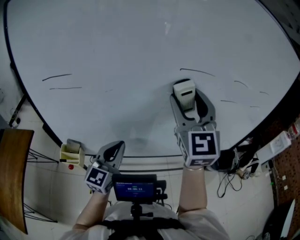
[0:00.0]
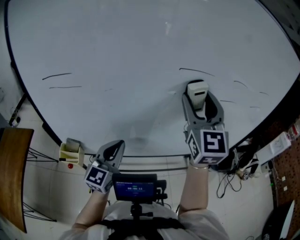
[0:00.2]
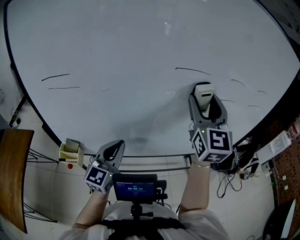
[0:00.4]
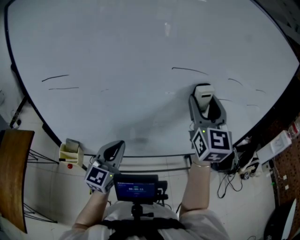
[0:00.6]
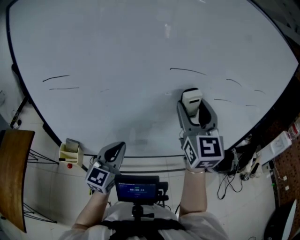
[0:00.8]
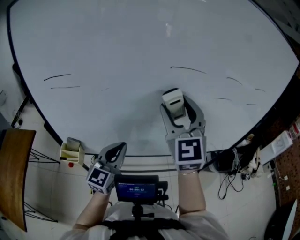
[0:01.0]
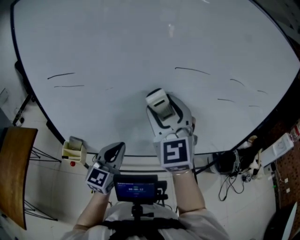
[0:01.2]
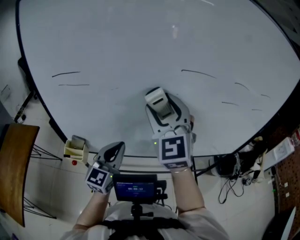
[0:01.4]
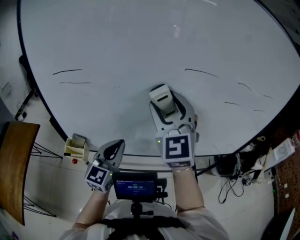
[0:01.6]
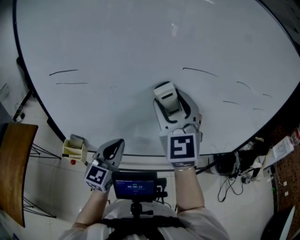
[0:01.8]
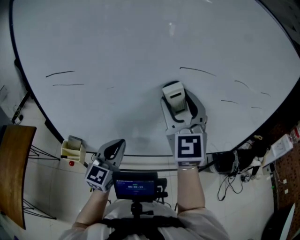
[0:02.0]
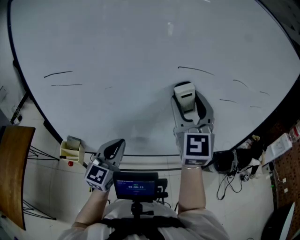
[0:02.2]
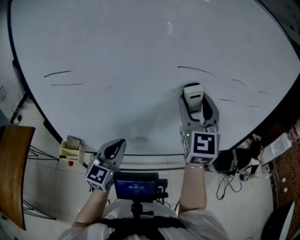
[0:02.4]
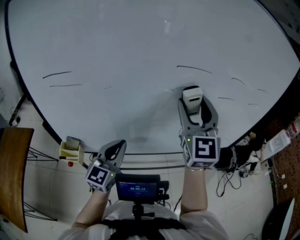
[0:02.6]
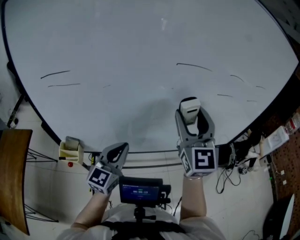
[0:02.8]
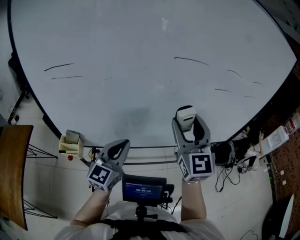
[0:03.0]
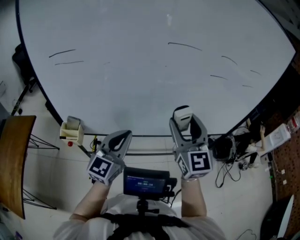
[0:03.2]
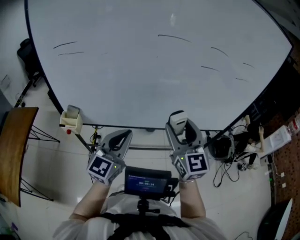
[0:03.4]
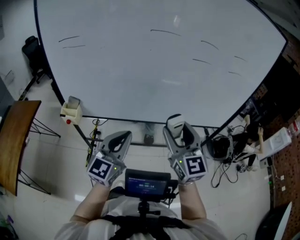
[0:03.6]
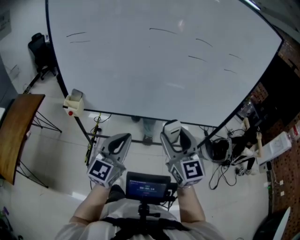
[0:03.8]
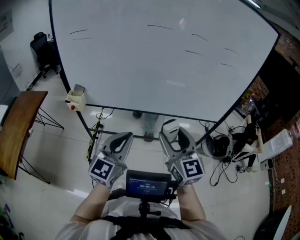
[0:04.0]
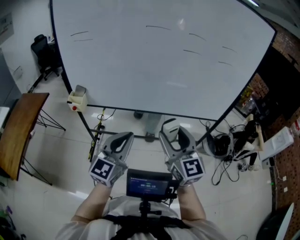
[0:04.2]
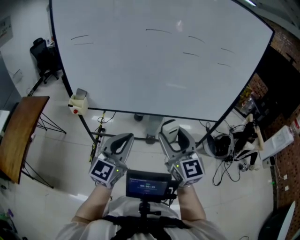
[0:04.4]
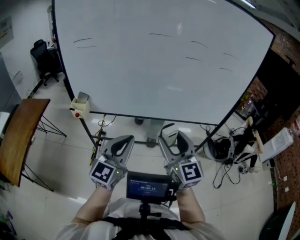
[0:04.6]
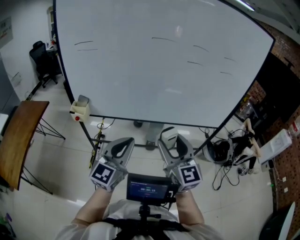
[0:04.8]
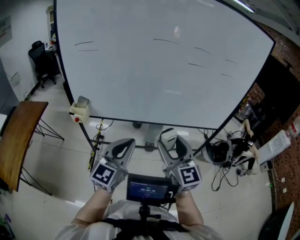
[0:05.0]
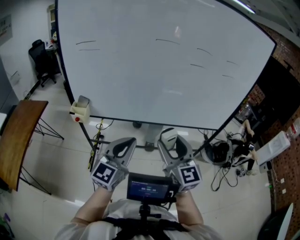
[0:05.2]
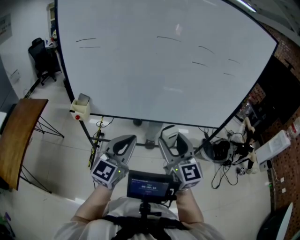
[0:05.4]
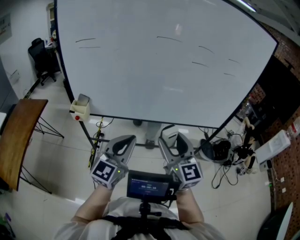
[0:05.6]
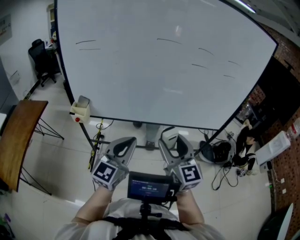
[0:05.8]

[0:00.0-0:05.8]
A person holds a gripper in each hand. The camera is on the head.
0:00.0 to 0:01.4: The right gripper heads to the left, covering some 5 cm.
0:01.4 to 0:02.8: The right gripper goes some 10 cm to the right.
0:02.8 to 0:04.4: The left gripper shifts some 30 cm backward and to the right; the right gripper is displaced backward and downward by approximately 30 cm, and rotates approximately 30 degrees.
0:04.4 to 0:05.8: There are only small adjustments of the grippers.

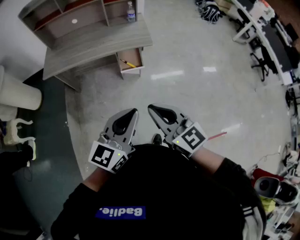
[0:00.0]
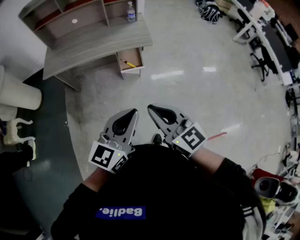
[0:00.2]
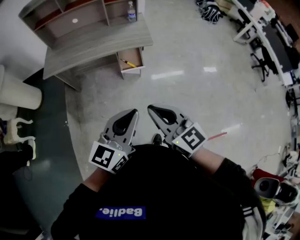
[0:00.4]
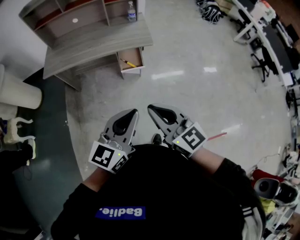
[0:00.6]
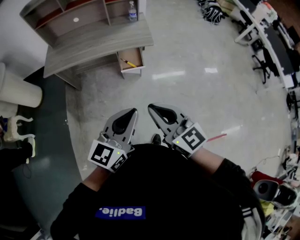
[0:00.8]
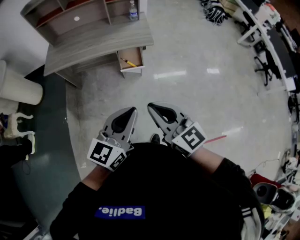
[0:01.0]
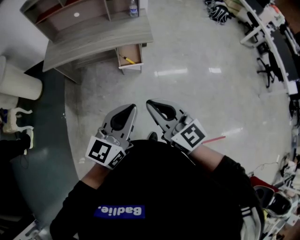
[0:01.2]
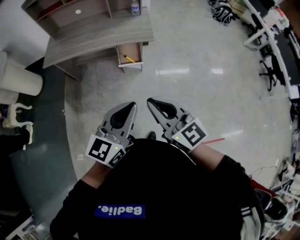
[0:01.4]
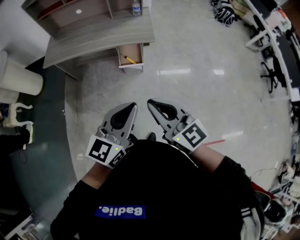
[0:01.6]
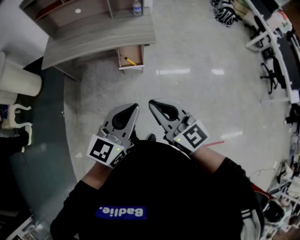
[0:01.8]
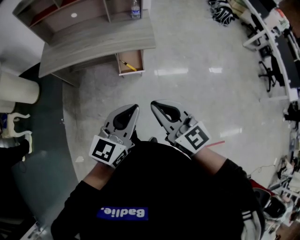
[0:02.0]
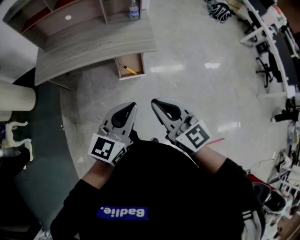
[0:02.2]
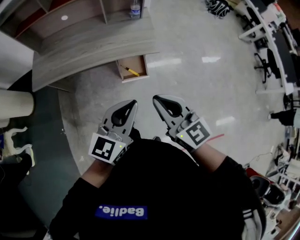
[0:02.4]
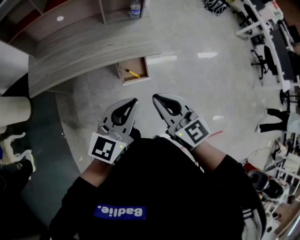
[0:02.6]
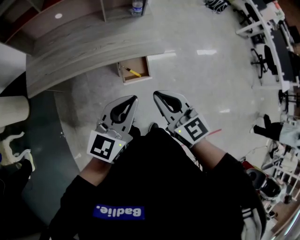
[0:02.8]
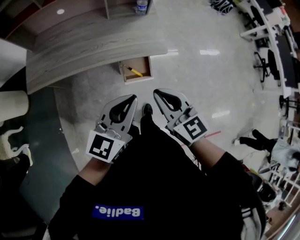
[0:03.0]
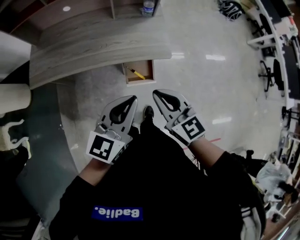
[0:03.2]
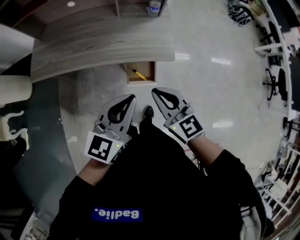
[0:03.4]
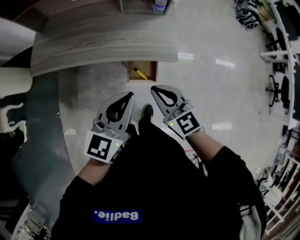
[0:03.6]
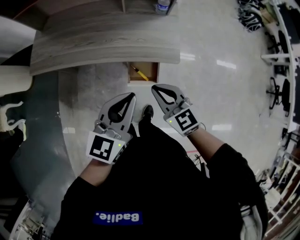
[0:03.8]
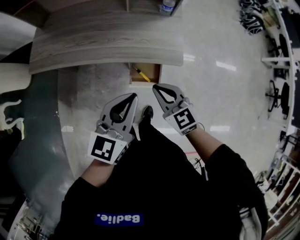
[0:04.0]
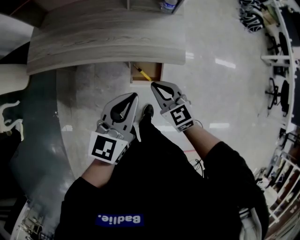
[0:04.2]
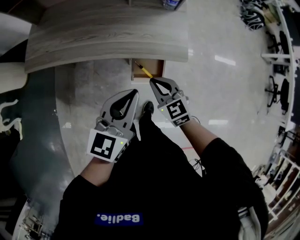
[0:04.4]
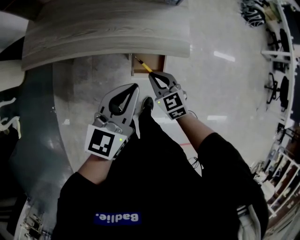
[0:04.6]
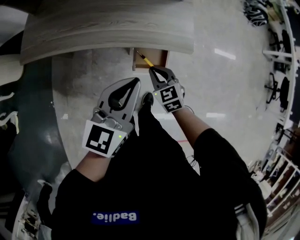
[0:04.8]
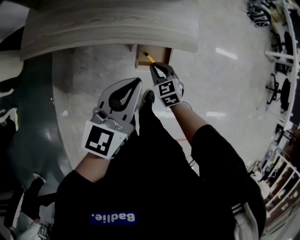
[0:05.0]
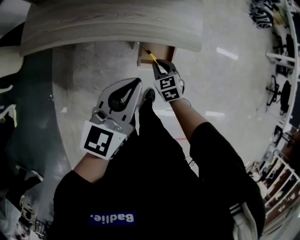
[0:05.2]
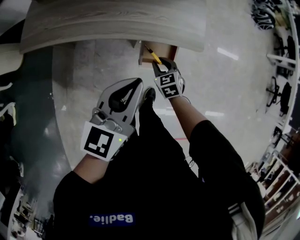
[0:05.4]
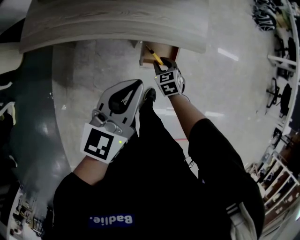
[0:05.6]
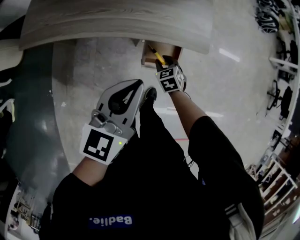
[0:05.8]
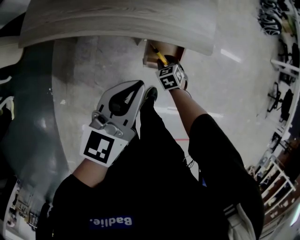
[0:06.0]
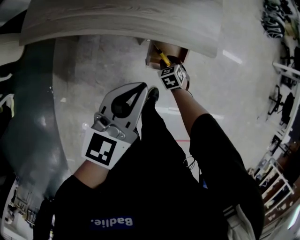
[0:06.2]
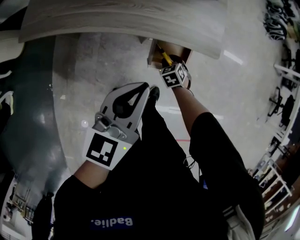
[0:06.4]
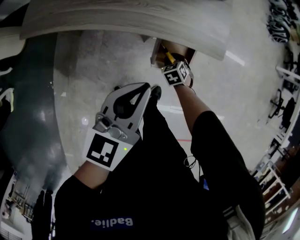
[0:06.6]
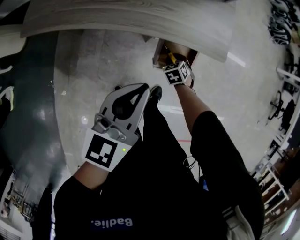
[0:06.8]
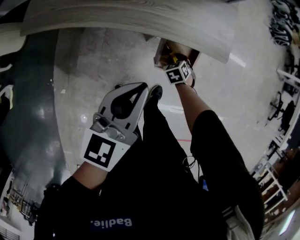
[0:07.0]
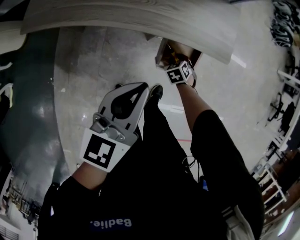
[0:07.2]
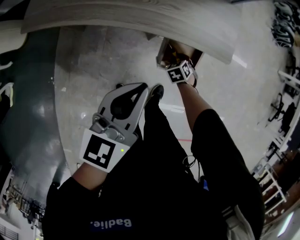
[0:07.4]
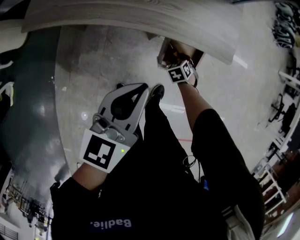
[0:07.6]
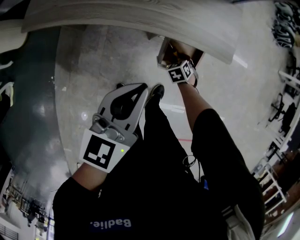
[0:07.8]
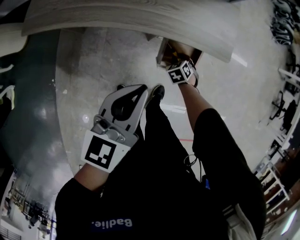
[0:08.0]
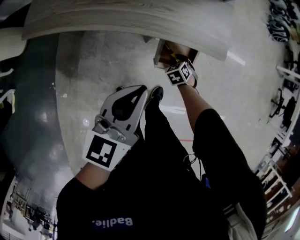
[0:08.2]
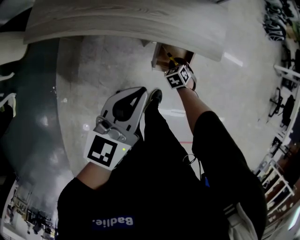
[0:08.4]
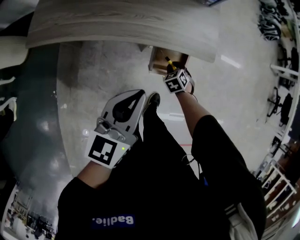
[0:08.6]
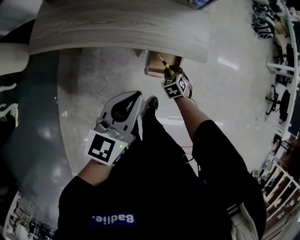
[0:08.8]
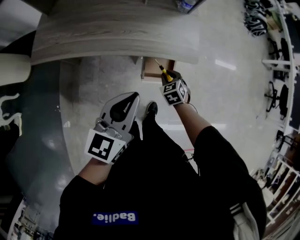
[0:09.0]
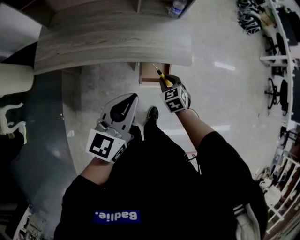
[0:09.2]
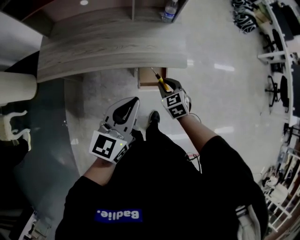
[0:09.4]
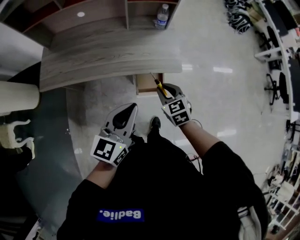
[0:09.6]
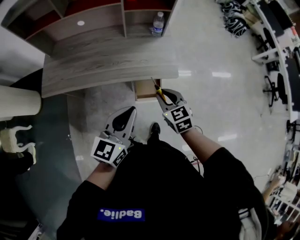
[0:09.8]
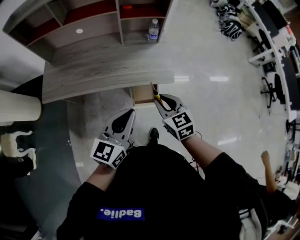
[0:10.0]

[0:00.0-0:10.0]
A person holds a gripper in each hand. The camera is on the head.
0:00.0 to 0:01.4: Both grippers travel together to the right, roughly 5 cm.
0:01.4 to 0:02.8: The left gripper shifts roughly 30 cm forward and to the left, while the right gripper is displaced forward by roughly 25 cm.
0:02.8 to 0:04.2: The right gripper goes some 20 cm downward and forward, and turns by some 20 degrees, while the left gripper moves forward and downward, about 10 cm.
0:04.2 to 0:05.8: The right gripper shifts about 25 cm downward, turns by roughly 30 degrees, and opens up. Meanwhile the left gripper moves to the left, some 5 cm.
0:05.8 to 0:07.2: The left gripper changes place by about 5 cm, while the right gripper goes about 10 cm downward.
0:07.2 to 0:08.6: The right gripper is displaced upward by approximately 5 cm.
0:08.6 to 0:10.0: The right gripper goes approximately 35 cm upward, and points its fingers some 30 degrees further upward. Meanwhile the left gripper heads upward and to the right, covering roughly 15 cm.

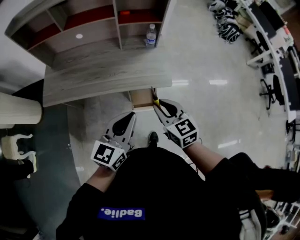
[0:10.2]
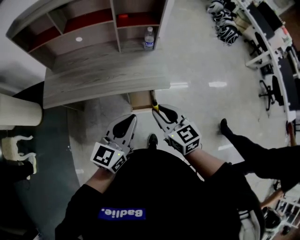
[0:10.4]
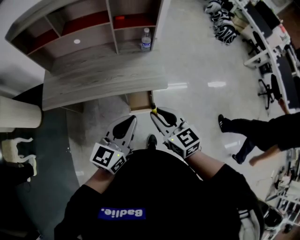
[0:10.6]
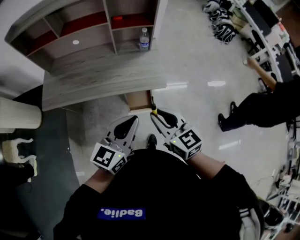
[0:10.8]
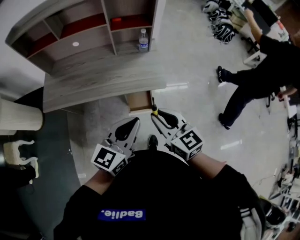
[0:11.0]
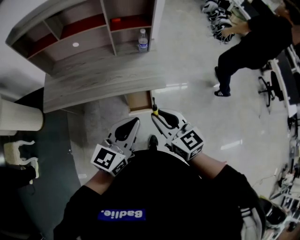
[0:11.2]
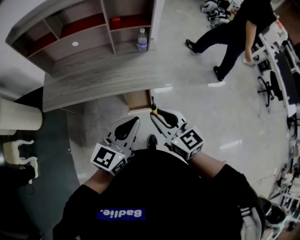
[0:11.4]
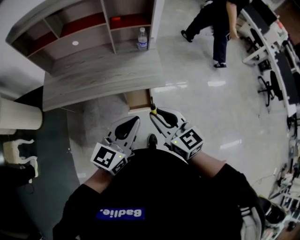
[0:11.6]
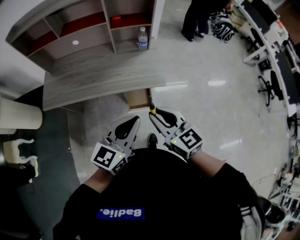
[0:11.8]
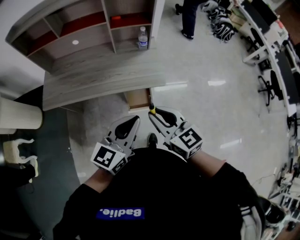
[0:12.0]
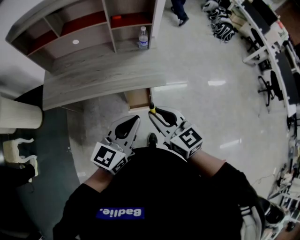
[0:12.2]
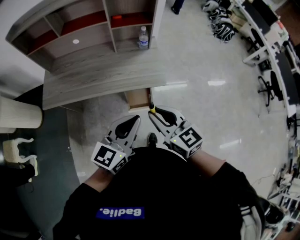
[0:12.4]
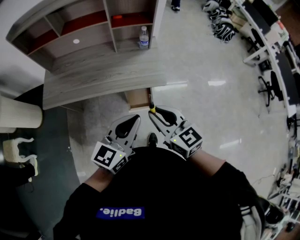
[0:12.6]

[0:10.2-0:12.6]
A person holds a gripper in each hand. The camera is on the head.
0:10.2 to 0:11.4: The left gripper shifts by approximately 5 cm. The right gripper goes about 10 cm upward and backward.
0:11.4 to 0:12.6: Both grippers stay put.

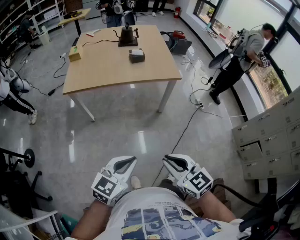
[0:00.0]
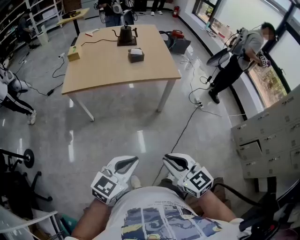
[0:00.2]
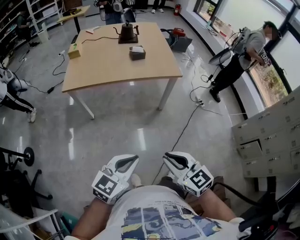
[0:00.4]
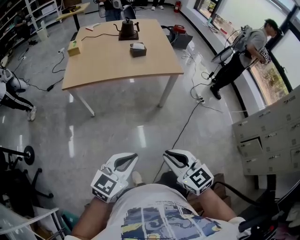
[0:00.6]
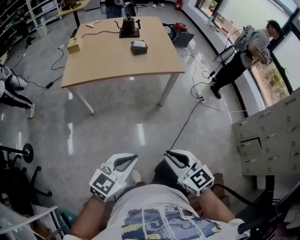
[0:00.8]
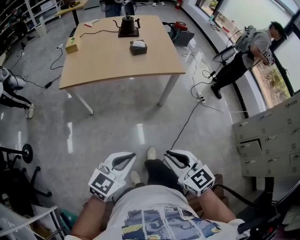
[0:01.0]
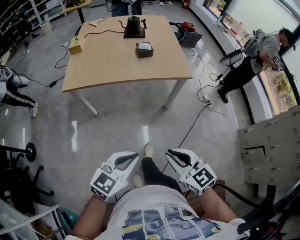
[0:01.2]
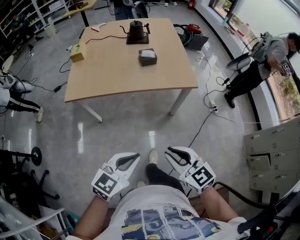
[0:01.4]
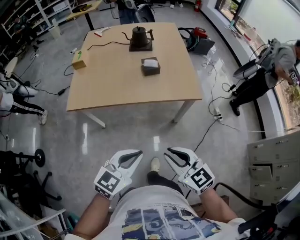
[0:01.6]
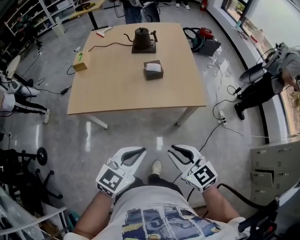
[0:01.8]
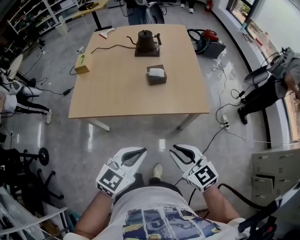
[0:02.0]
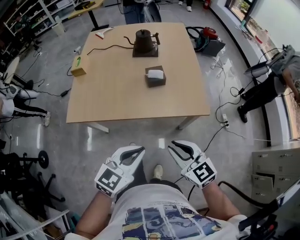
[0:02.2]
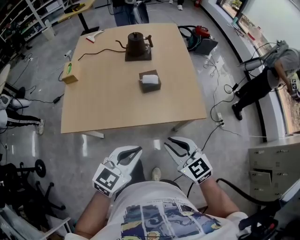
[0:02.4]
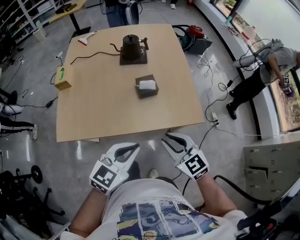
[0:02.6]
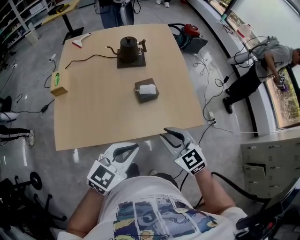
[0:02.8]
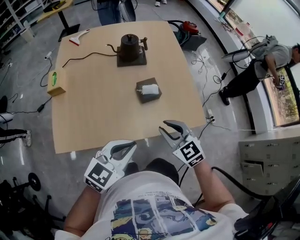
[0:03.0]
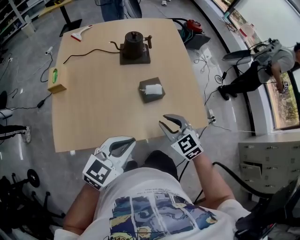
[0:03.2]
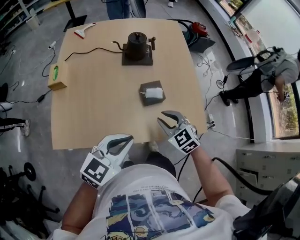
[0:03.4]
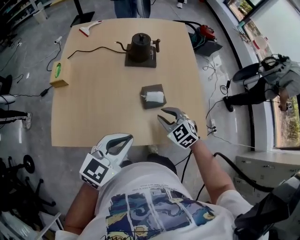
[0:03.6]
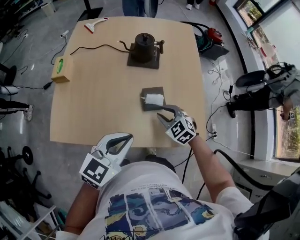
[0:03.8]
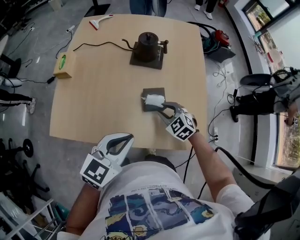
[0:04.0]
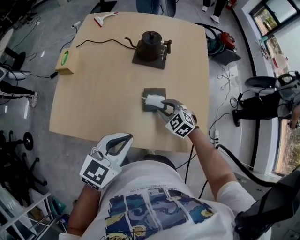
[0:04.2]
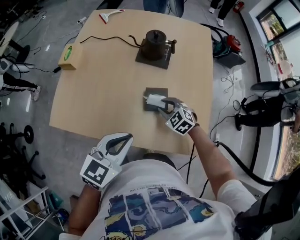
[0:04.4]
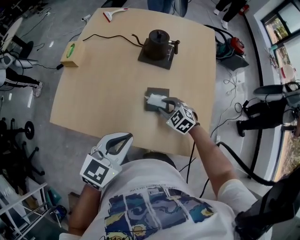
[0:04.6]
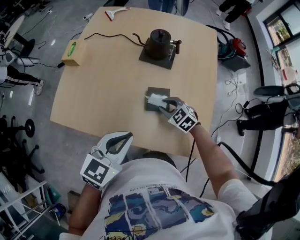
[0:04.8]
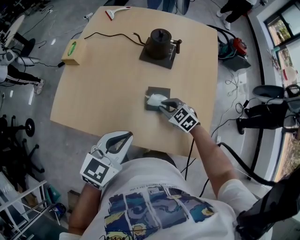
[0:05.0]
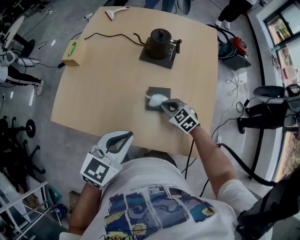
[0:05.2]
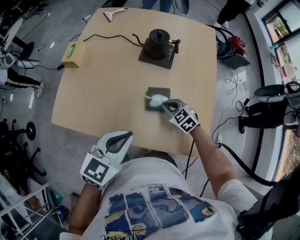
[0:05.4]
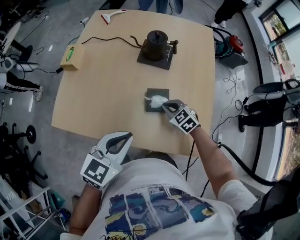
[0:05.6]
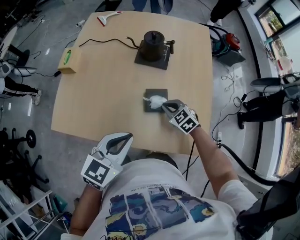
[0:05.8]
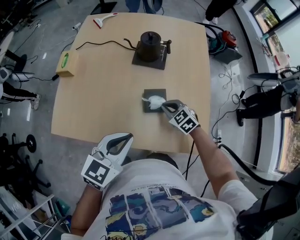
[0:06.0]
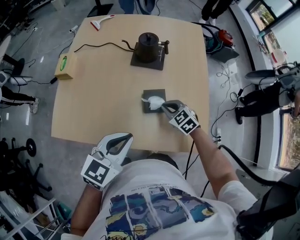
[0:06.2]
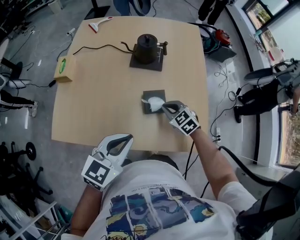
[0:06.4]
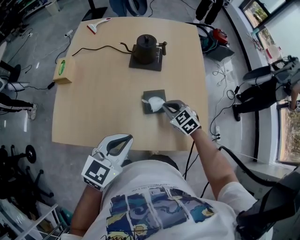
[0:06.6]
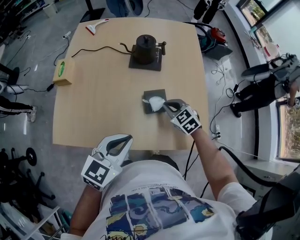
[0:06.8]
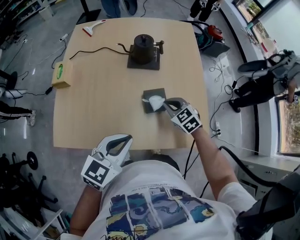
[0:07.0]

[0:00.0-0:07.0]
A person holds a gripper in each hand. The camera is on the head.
0:00.0 to 0:01.4: The grippers both shift forward by roughly 15 cm.
0:01.4 to 0:02.8: The grippers both shift forward by roughly 35 cm.
0:02.8 to 0:04.2: The left gripper travels forward by roughly 15 cm, and changes its angle by approximately 20 degrees. The right gripper heads forward and downward, covering approximately 30 cm, and rotates roughly 30 degrees.
0:04.2 to 0:05.6: The right gripper closes up.
0:05.6 to 0:07.0: The right gripper heads upward, covering about 5 cm.
